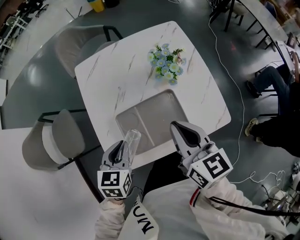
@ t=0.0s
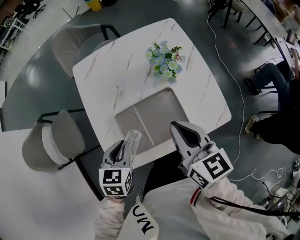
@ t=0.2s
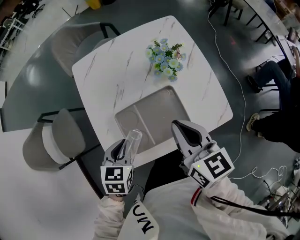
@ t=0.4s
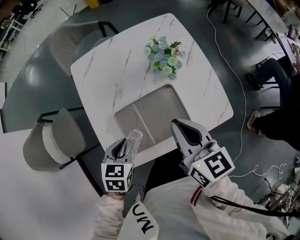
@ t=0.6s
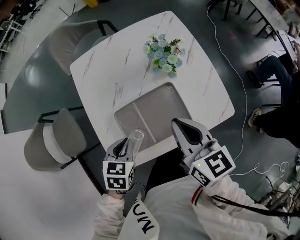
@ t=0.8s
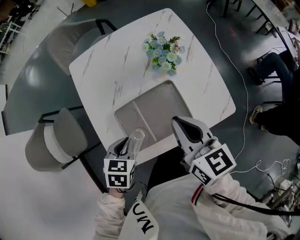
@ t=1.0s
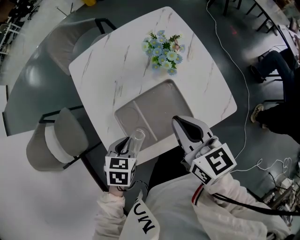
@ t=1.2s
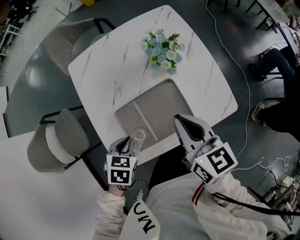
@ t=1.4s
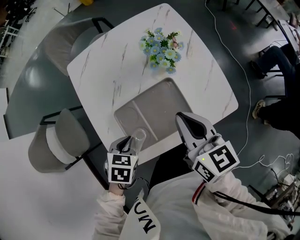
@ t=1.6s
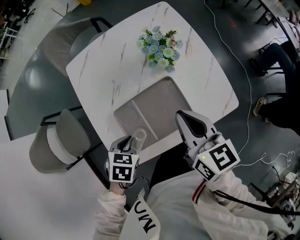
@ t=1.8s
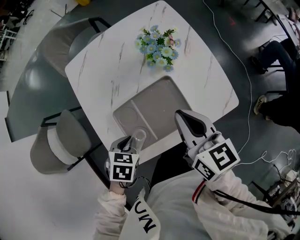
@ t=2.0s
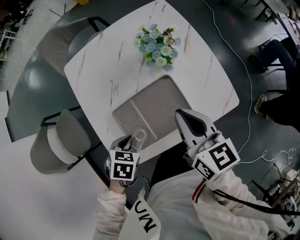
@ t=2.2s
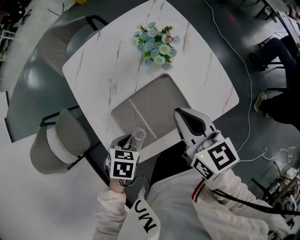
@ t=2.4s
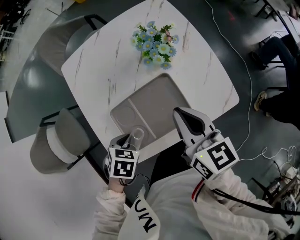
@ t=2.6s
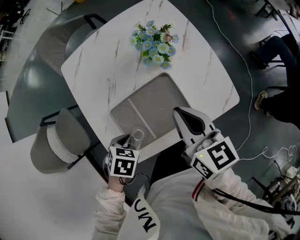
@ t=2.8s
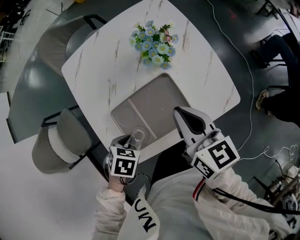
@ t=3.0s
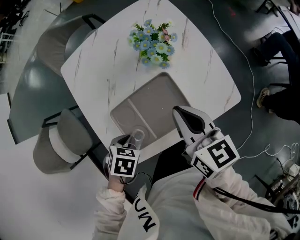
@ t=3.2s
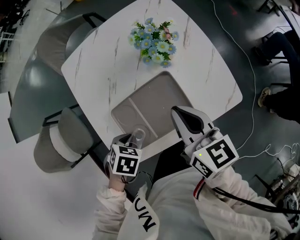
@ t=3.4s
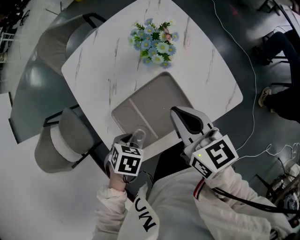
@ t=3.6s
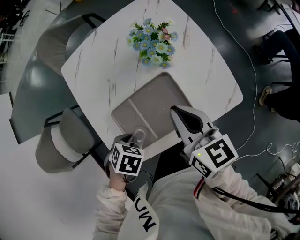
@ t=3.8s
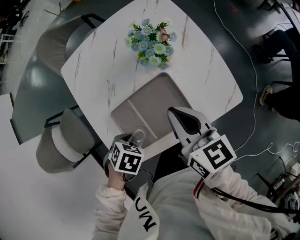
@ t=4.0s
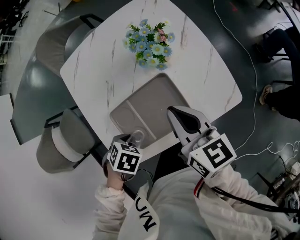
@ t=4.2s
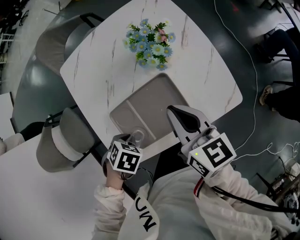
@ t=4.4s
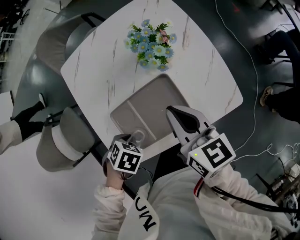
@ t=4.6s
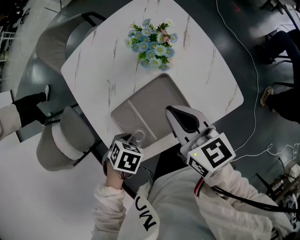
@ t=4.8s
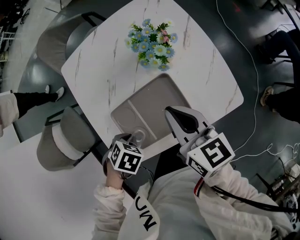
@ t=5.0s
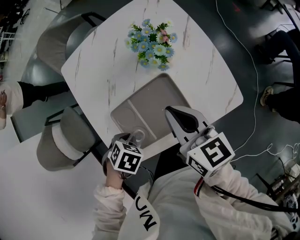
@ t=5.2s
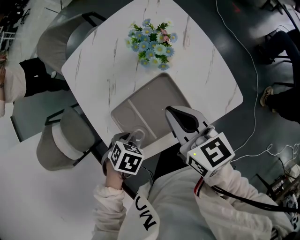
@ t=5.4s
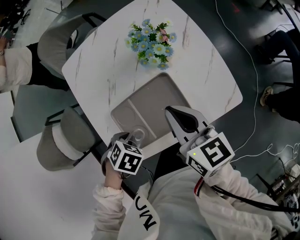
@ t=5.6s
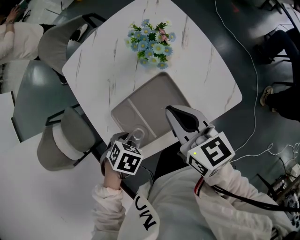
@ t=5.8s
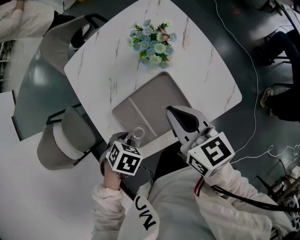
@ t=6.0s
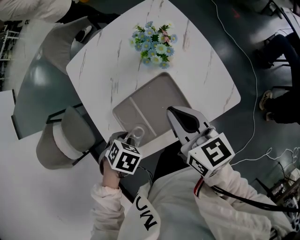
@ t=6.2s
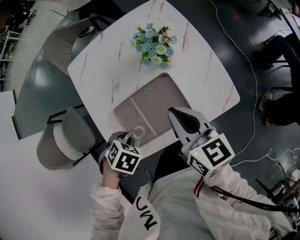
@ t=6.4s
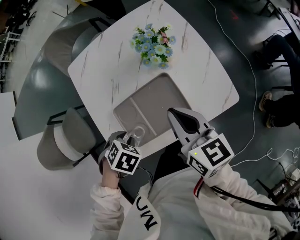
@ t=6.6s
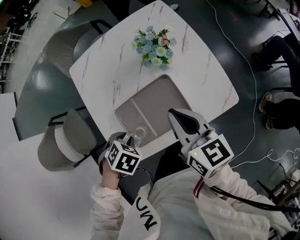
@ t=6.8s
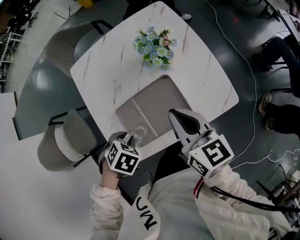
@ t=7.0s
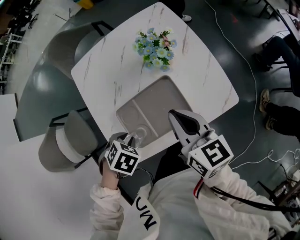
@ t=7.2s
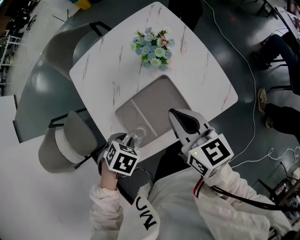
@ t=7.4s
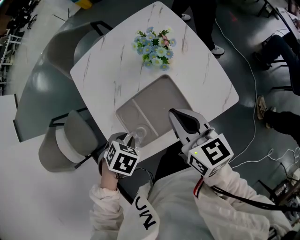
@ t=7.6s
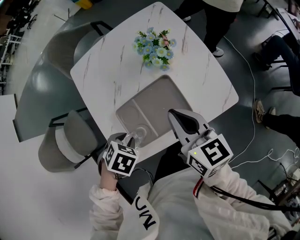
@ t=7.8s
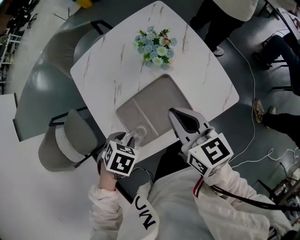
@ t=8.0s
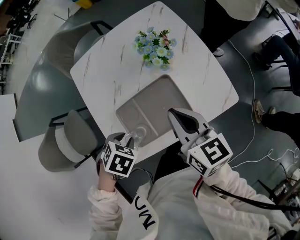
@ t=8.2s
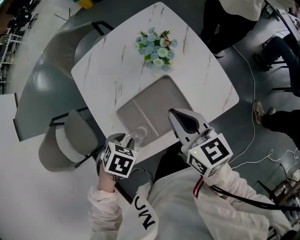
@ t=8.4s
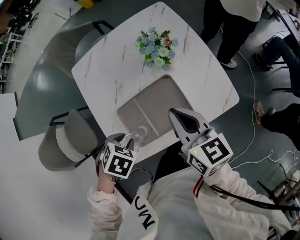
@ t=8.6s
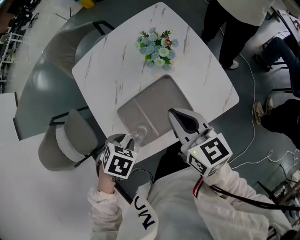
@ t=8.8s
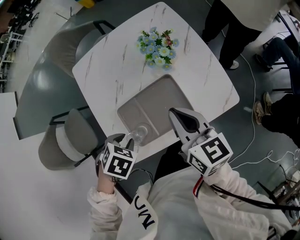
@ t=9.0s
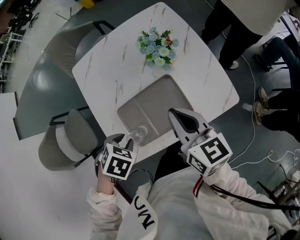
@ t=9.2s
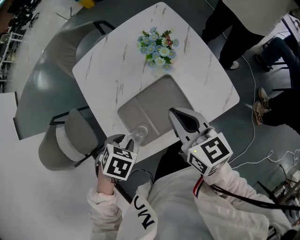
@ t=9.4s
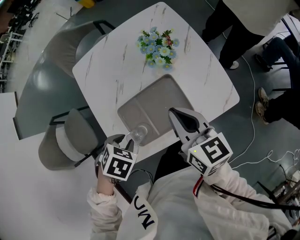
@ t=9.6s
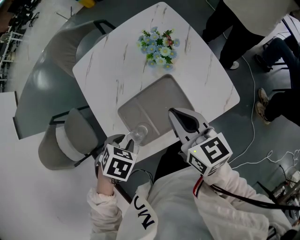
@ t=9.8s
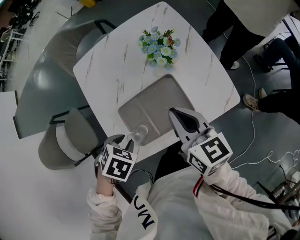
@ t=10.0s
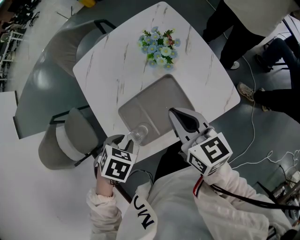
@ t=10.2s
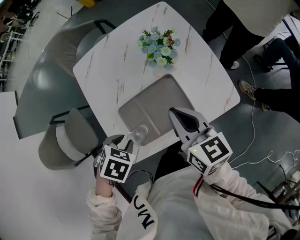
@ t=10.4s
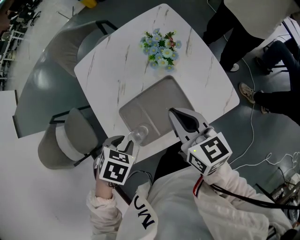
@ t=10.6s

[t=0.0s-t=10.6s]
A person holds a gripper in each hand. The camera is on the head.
t=0.0s to t=1.6s: The left gripper shifts roughly 10 cm downward, and swivels about 30 degrees.
t=1.6s to t=3.0s: The grippers make only small movements.
t=3.0s to t=7.6s: The grippers make only small movements.
t=7.6s to t=10.6s: The grippers stay close to where they were, moving slightly.

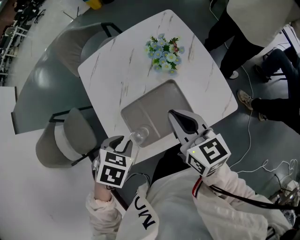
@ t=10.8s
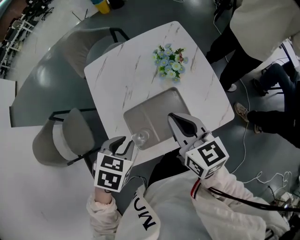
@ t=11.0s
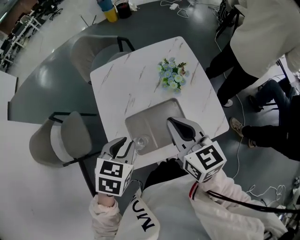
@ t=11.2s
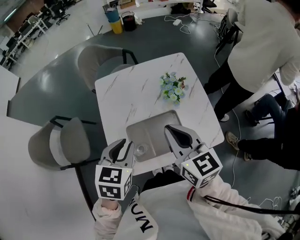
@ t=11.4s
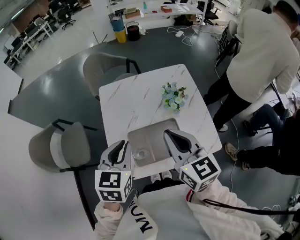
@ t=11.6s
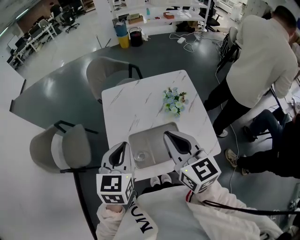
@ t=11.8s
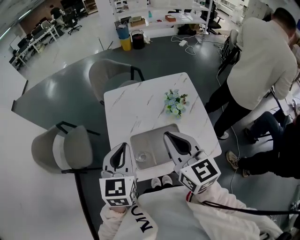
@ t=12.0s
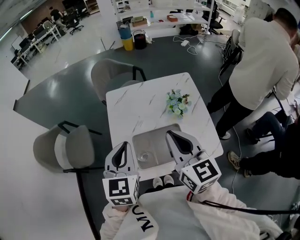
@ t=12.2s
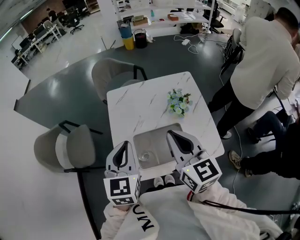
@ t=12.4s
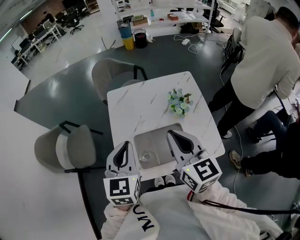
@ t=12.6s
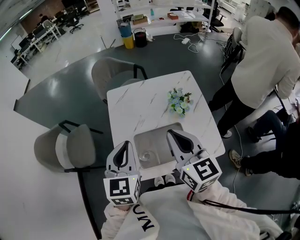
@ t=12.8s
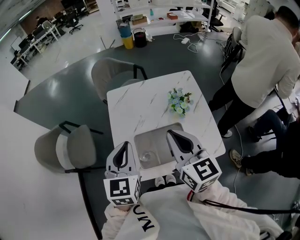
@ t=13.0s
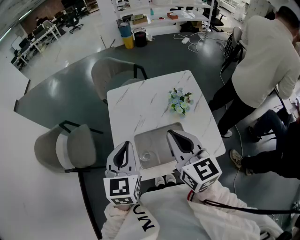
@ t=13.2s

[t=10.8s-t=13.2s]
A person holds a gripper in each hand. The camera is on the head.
t=10.8s to t=12.0s: Both grippers travel together upward, approximately 20 cm. The left gripper points its fingers roughly 50 degrees further upward, and closes its fingers. Meanwhile the right gripper turns by approximately 20 degrees.
t=12.0s to t=13.2s: Both grippers stay about where they are.

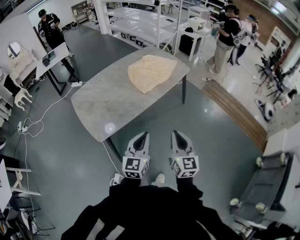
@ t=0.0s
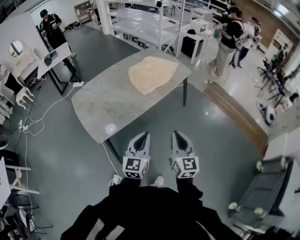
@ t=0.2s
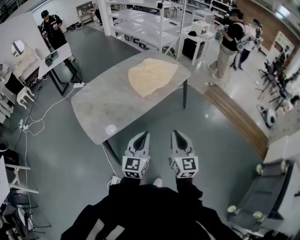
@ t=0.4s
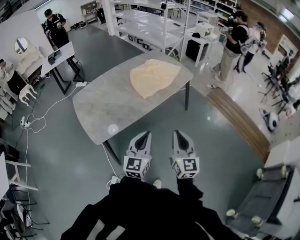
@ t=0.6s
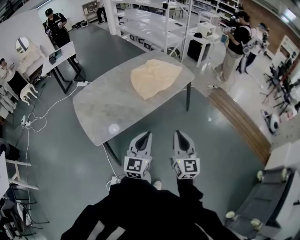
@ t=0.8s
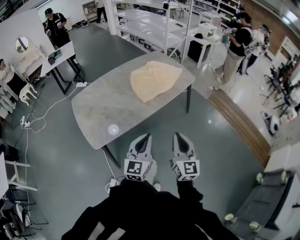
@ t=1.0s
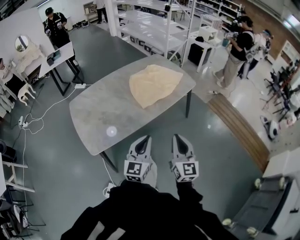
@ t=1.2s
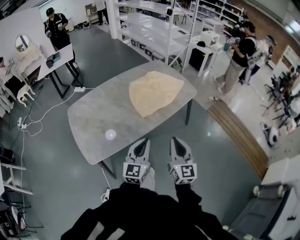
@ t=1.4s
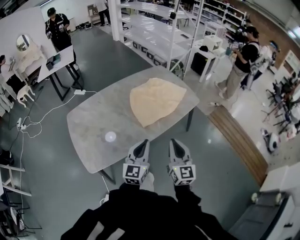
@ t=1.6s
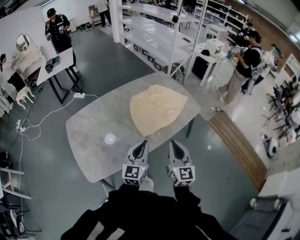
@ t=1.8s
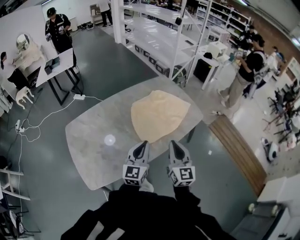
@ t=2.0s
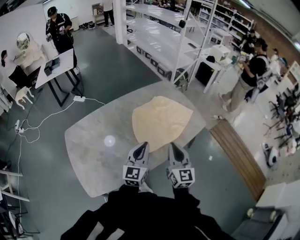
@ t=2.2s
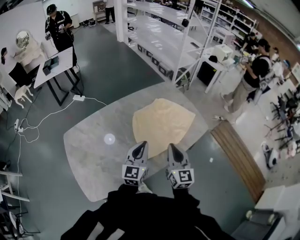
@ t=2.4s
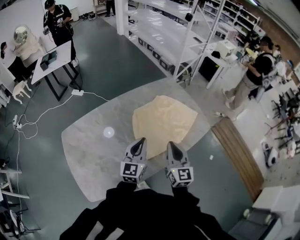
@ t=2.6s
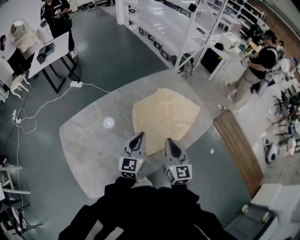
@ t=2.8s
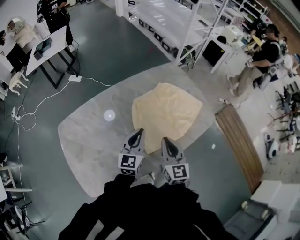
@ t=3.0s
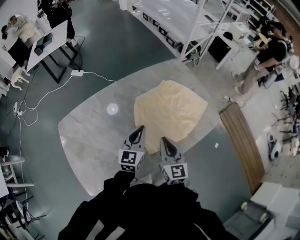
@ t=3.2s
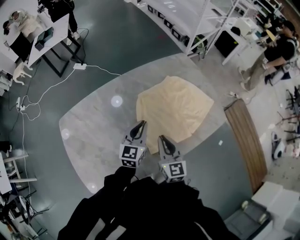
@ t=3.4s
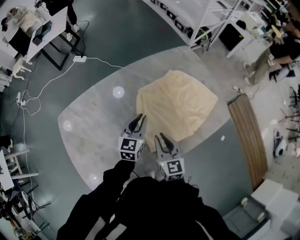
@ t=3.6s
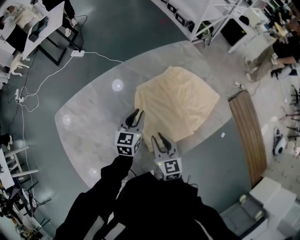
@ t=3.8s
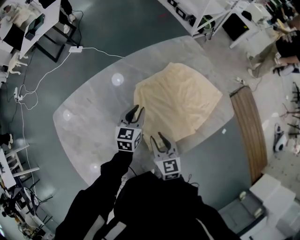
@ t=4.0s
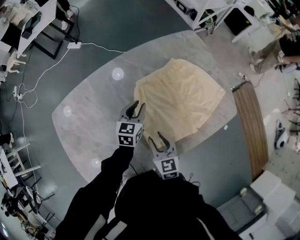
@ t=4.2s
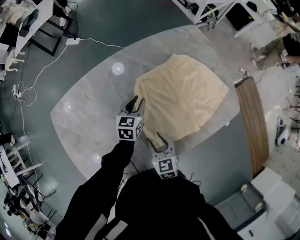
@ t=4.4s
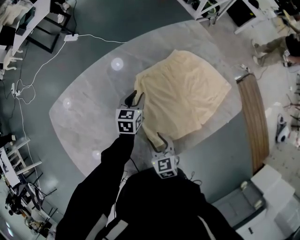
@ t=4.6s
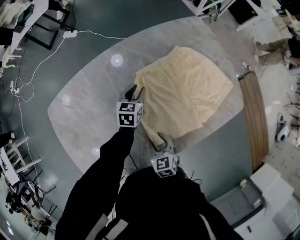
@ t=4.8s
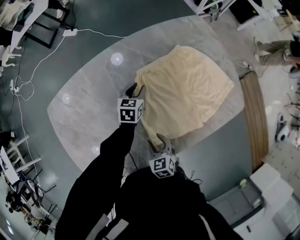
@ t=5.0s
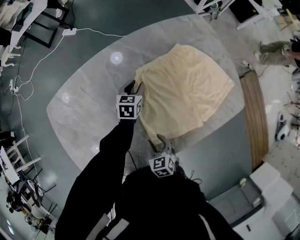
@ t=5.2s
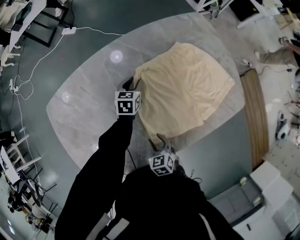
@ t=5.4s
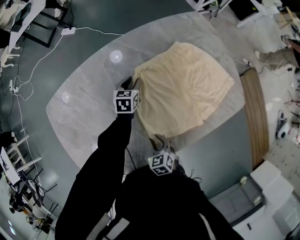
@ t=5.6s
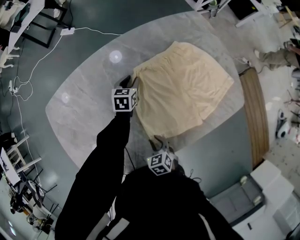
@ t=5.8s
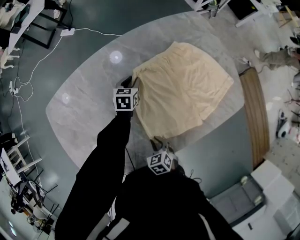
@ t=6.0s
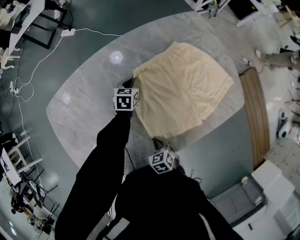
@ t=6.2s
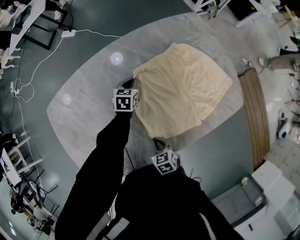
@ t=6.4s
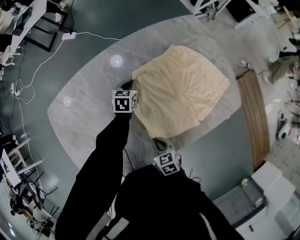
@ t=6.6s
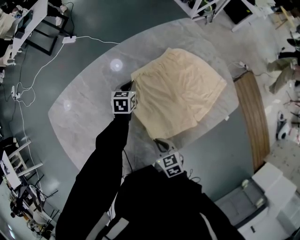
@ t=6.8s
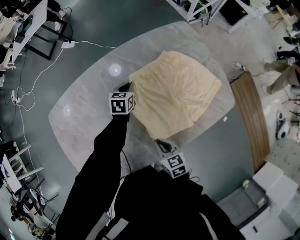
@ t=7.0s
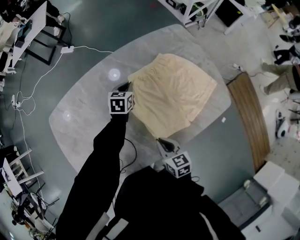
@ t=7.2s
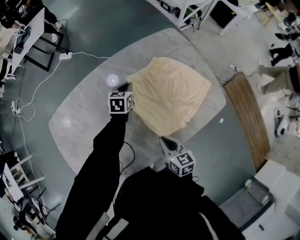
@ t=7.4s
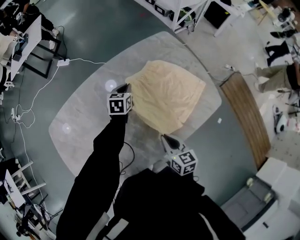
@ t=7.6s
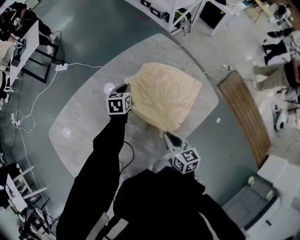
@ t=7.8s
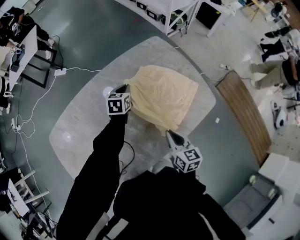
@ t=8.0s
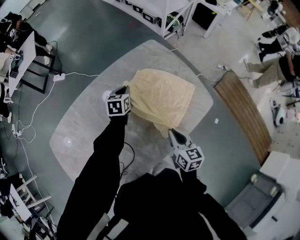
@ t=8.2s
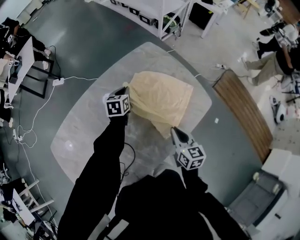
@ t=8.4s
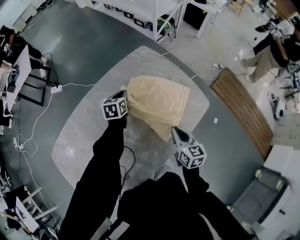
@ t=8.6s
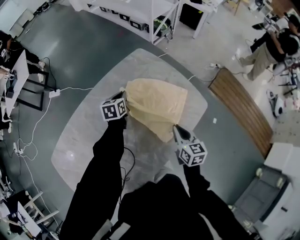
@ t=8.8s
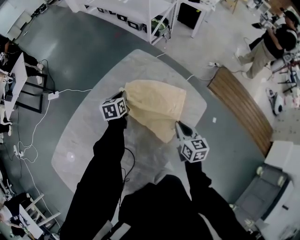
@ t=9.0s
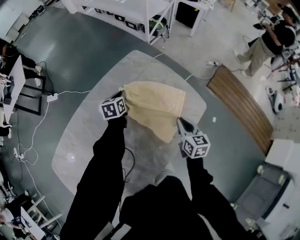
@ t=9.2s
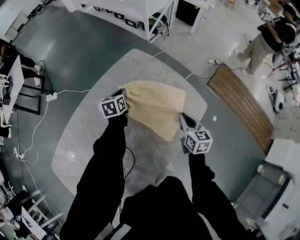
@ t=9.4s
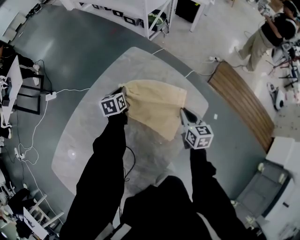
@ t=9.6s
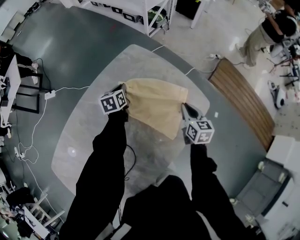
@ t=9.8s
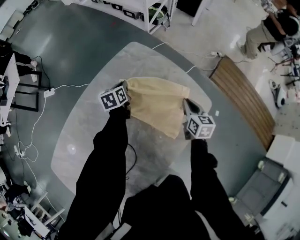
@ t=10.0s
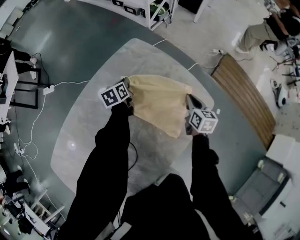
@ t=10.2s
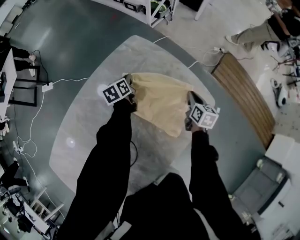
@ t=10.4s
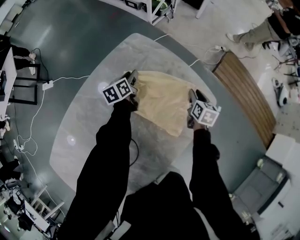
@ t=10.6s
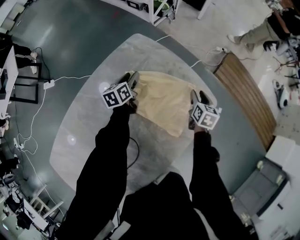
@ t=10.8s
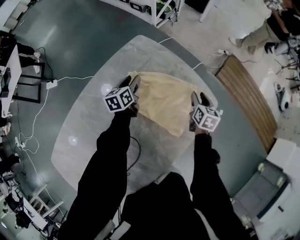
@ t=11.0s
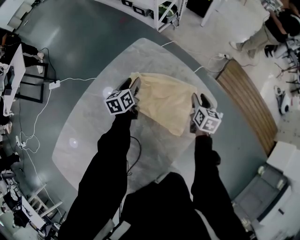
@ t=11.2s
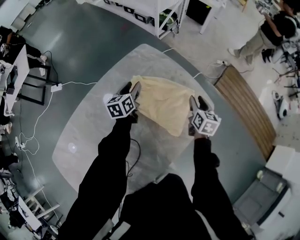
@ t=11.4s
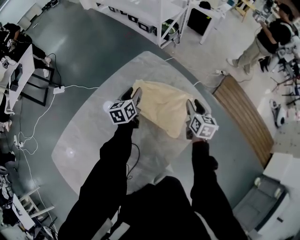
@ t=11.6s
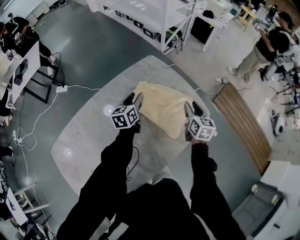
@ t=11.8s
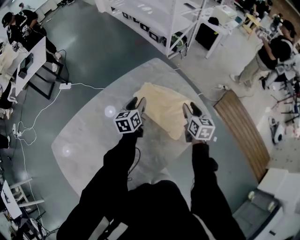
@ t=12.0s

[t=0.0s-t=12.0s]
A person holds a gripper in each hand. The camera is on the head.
t=0.0s to t=1.6s: The grippers both shift forward by some 25 cm.
t=1.6s to t=3.0s: The grippers both shift forward by roughly 35 cm.
t=3.0s to t=4.4s: The left gripper is displaced downward and forward by roughly 25 cm, rotates roughly 30 degrees, and opens its fingers. Meanwhile the right gripper is displaced downward by approximately 20 cm, turns by approximately 30 degrees, and opens.
t=4.4s to t=6.0s: The left gripper is displaced downward and forward by some 10 cm. The right gripper travels downward and backward by some 15 cm, and turns by roughly 30 degrees.
t=6.0s to t=7.6s: The left gripper goes about 15 cm upward and to the right, and closes, while the right gripper travels upward and to the right by some 20 cm, and tilts its fingers about 30 degrees upward.
t=7.6s to t=9.0s: The left gripper shifts some 10 cm to the right and forward; the right gripper is displaced to the right and forward by about 20 cm, and turns by roughly 20 degrees.
t=9.0s to t=10.4s: The left gripper heads forward and downward, covering some 15 cm. Meanwhile the right gripper travels forward, downward and to the right by roughly 20 cm.
t=10.4s to t=12.0s: The right gripper shifts about 15 cm upward and backward, swivels about 20 degrees, and opens; the left gripper travels backward and upward by approximately 25 cm, and opens its fingers.
